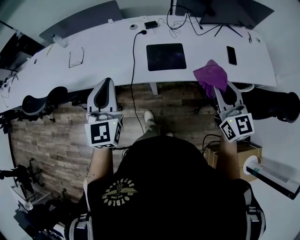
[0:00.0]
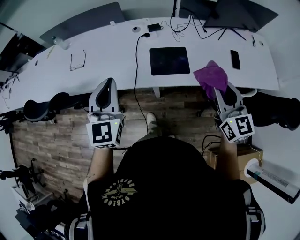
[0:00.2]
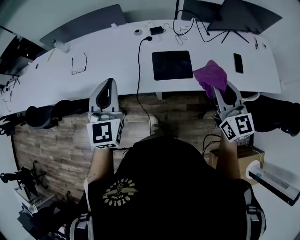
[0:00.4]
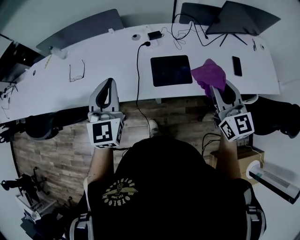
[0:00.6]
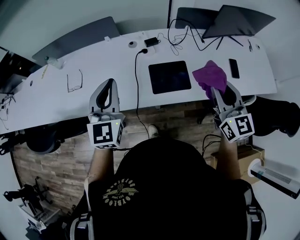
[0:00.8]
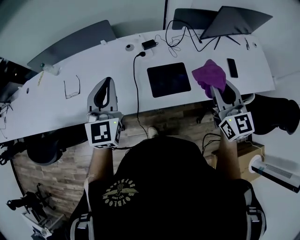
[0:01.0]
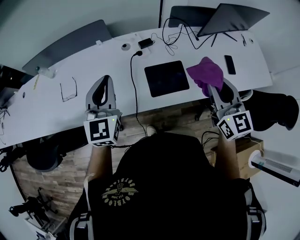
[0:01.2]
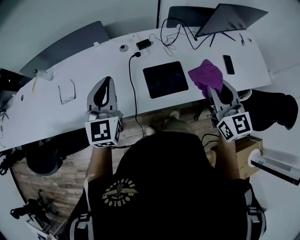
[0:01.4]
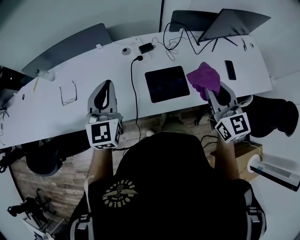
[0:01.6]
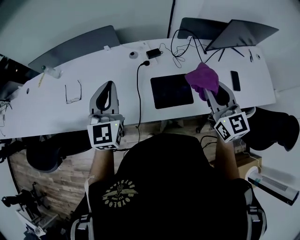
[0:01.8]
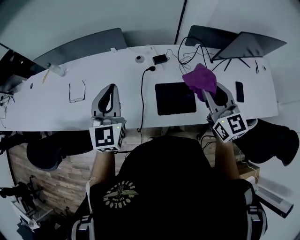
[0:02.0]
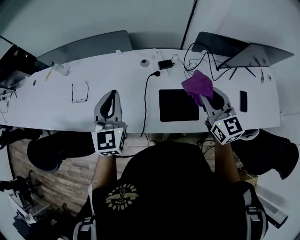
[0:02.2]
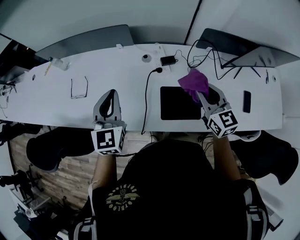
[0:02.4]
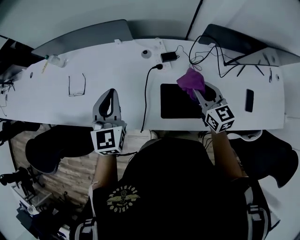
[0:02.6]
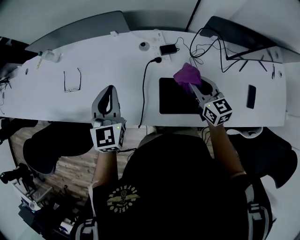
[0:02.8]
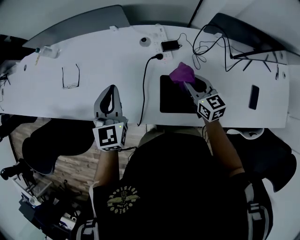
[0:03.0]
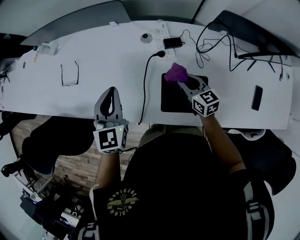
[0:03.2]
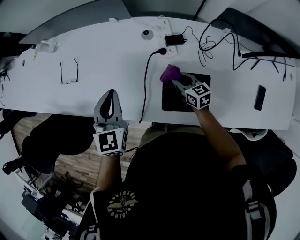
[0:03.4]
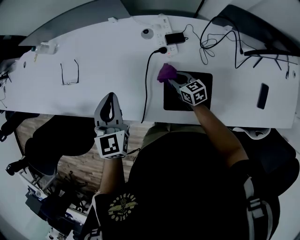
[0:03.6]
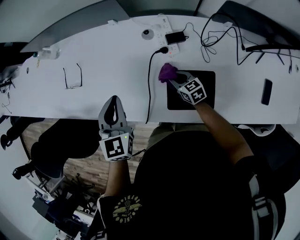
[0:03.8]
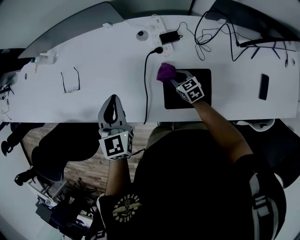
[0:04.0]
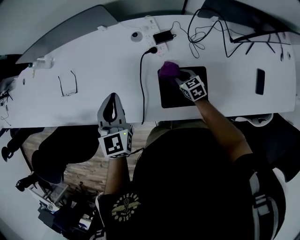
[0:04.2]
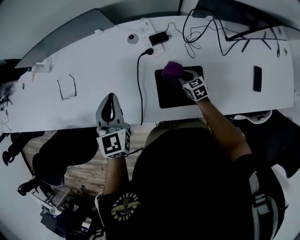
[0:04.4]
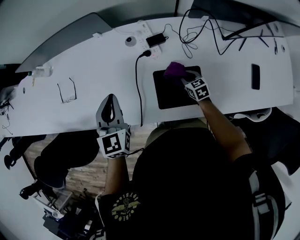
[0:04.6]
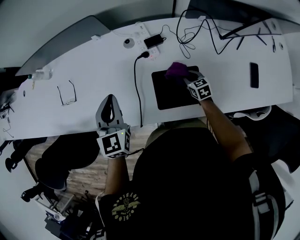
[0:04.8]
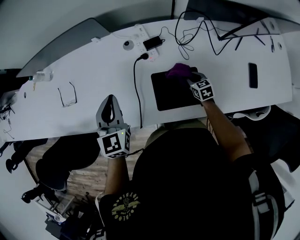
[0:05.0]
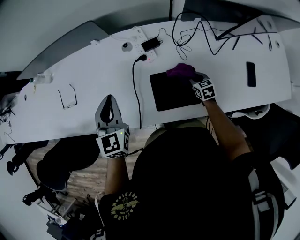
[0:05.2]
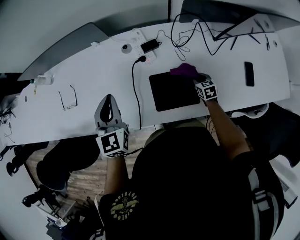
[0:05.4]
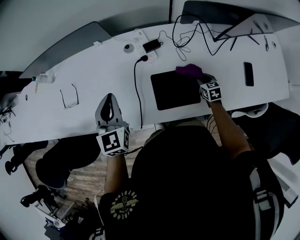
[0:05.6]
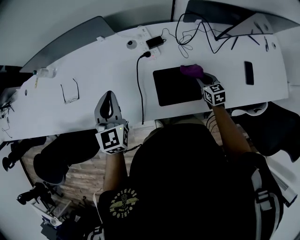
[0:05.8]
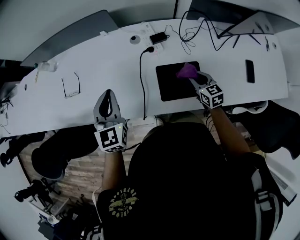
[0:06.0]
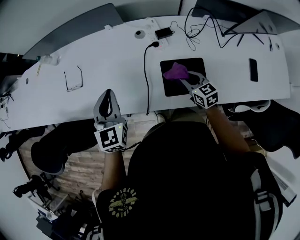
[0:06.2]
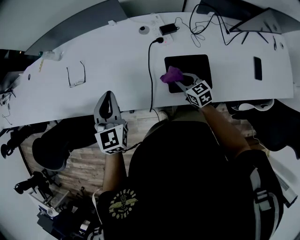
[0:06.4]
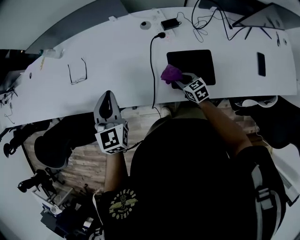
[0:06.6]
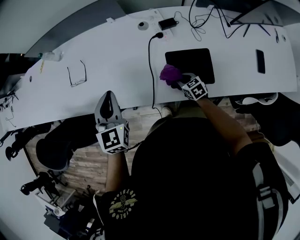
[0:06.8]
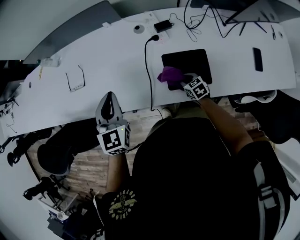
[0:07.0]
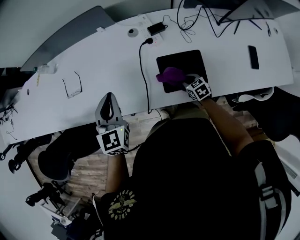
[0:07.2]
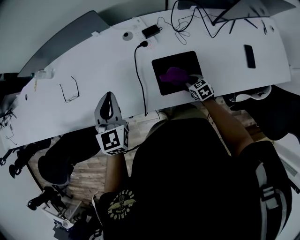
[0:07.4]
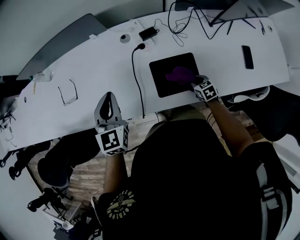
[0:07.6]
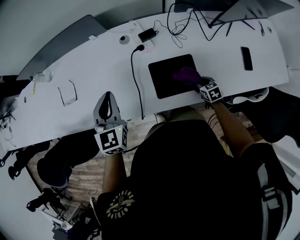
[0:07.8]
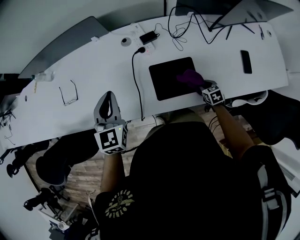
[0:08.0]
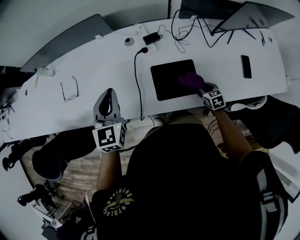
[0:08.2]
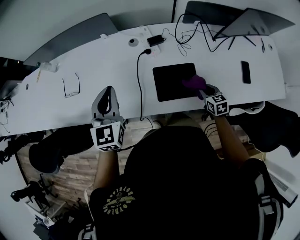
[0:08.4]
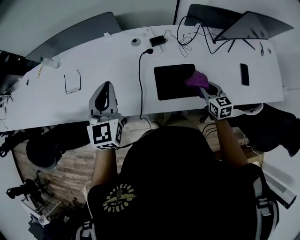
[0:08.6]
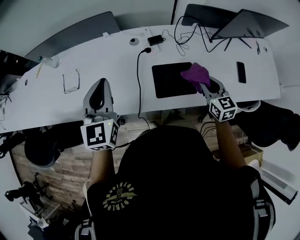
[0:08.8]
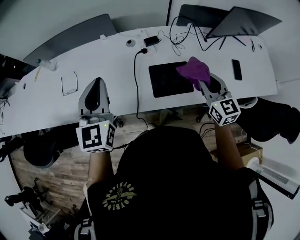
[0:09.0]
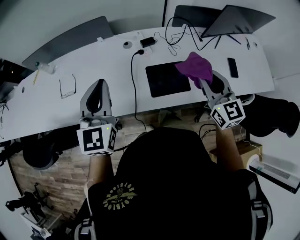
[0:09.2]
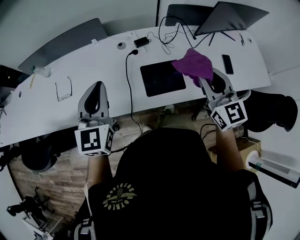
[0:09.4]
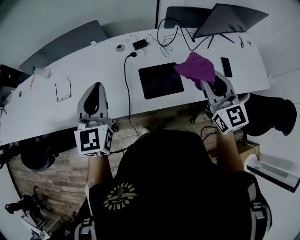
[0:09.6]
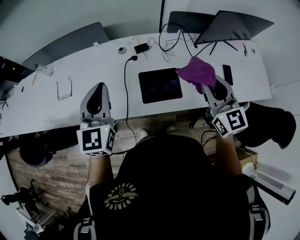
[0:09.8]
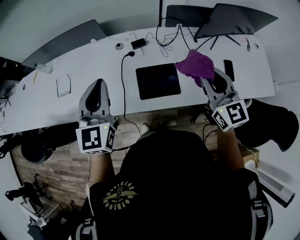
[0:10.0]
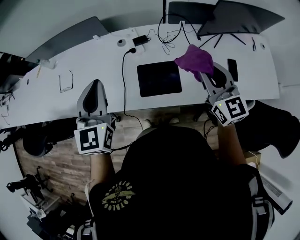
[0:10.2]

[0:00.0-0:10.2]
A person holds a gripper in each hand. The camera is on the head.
0:00.0 to 0:01.4: Both grippers travel together forward, some 20 cm.
0:01.4 to 0:03.0: The left gripper goes roughly 15 cm downward and forward, and changes its angle by approximately 20 degrees, while the right gripper travels downward and forward by roughly 35 cm, and rotates roughly 30 degrees.
0:03.0 to 0:04.4: The right gripper travels downward by approximately 20 cm, and turns by approximately 20 degrees.
0:04.4 to 0:05.8: The right gripper moves to the right, upward and backward, some 15 cm.
0:05.8 to 0:07.2: The right gripper heads to the left and downward, covering some 15 cm.
0:07.2 to 0:08.8: The left gripper goes approximately 10 cm upward. Meanwhile the right gripper is displaced upward by about 25 cm, and changes its angle by approximately 30 degrees.
0:08.8 to 0:10.2: The right gripper is displaced upward and to the right by about 20 cm; the left gripper goes roughly 10 cm to the right.

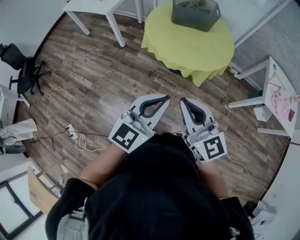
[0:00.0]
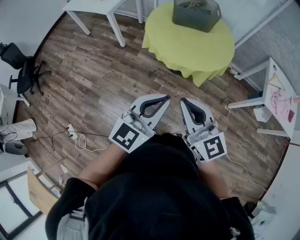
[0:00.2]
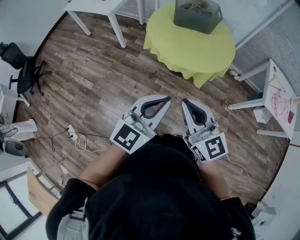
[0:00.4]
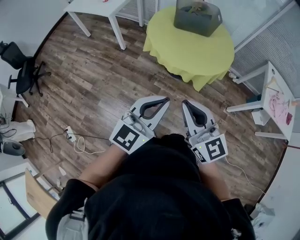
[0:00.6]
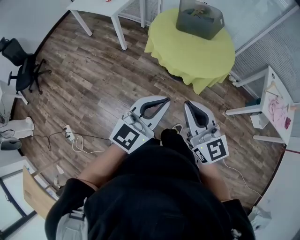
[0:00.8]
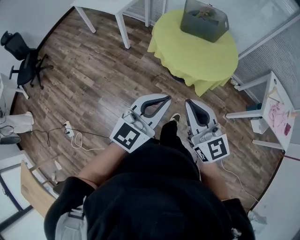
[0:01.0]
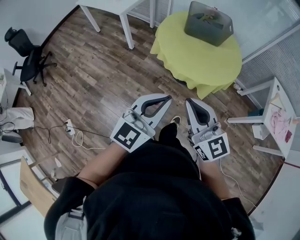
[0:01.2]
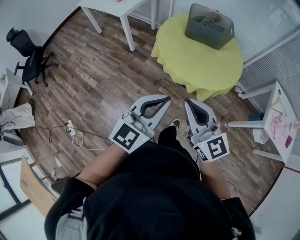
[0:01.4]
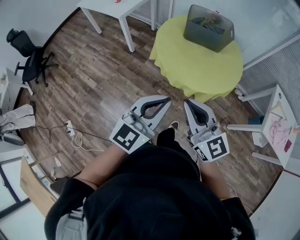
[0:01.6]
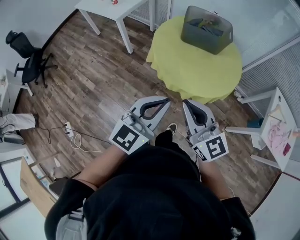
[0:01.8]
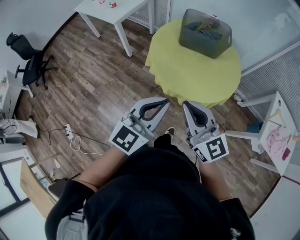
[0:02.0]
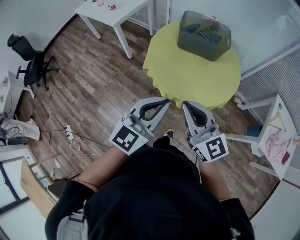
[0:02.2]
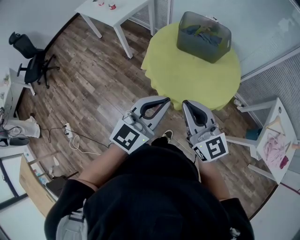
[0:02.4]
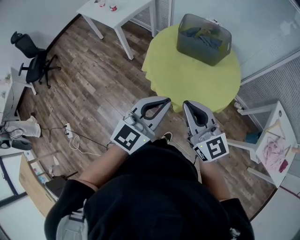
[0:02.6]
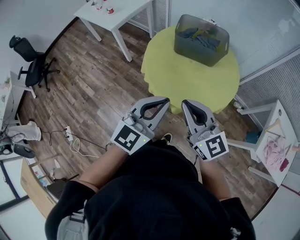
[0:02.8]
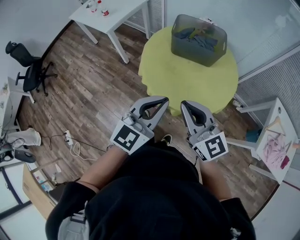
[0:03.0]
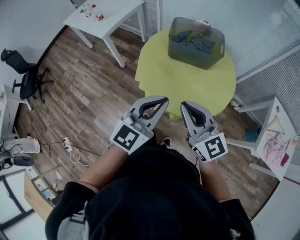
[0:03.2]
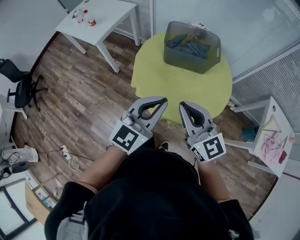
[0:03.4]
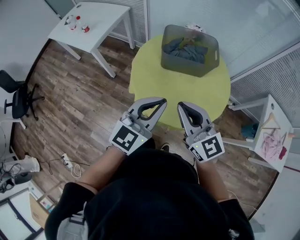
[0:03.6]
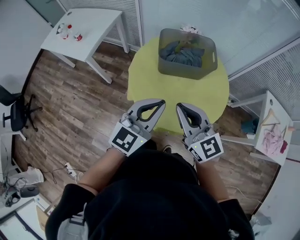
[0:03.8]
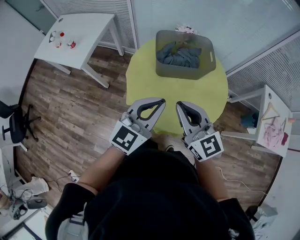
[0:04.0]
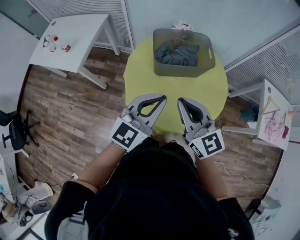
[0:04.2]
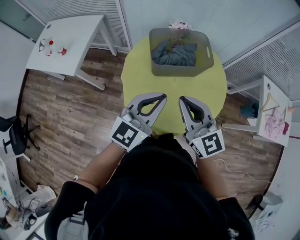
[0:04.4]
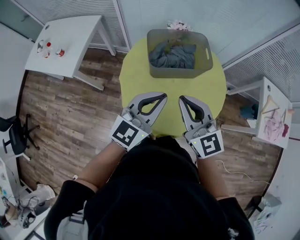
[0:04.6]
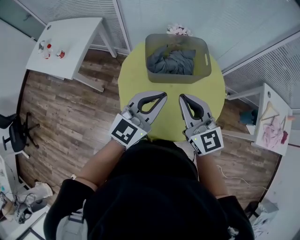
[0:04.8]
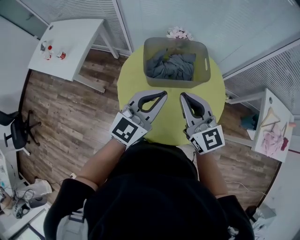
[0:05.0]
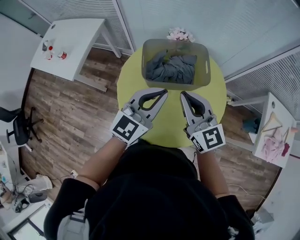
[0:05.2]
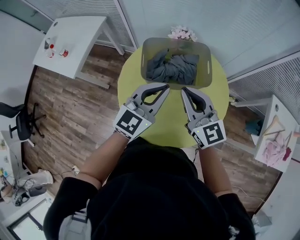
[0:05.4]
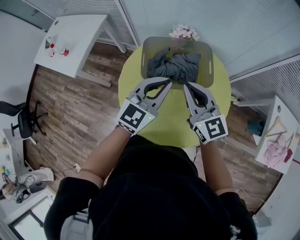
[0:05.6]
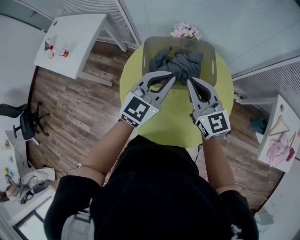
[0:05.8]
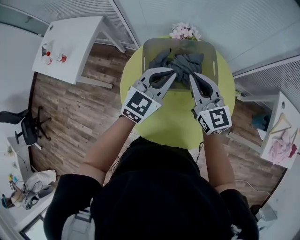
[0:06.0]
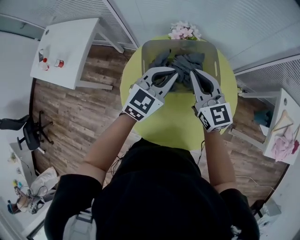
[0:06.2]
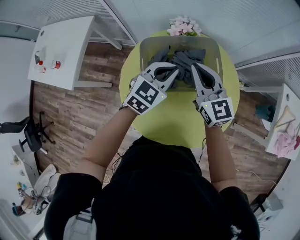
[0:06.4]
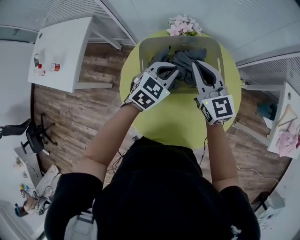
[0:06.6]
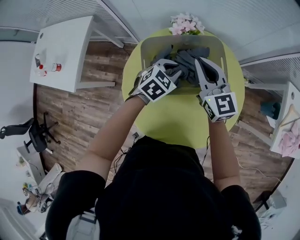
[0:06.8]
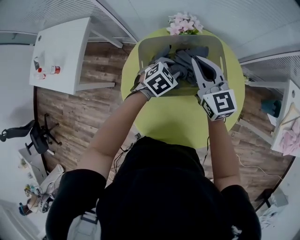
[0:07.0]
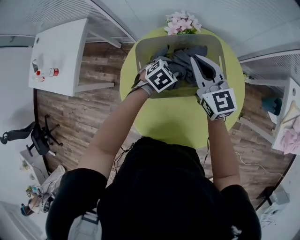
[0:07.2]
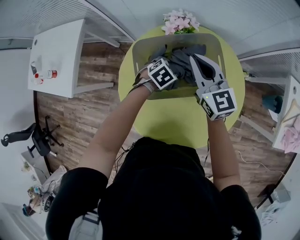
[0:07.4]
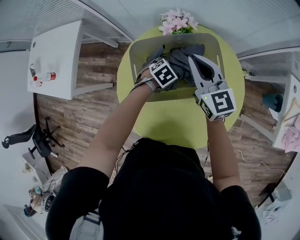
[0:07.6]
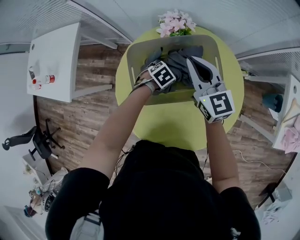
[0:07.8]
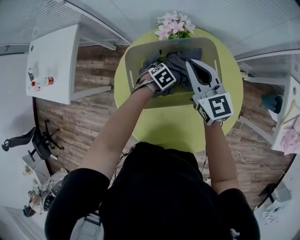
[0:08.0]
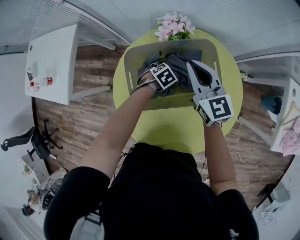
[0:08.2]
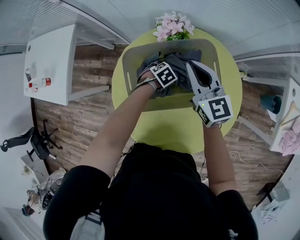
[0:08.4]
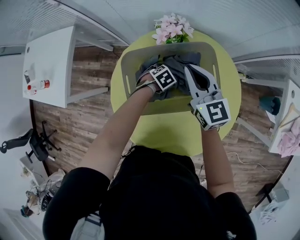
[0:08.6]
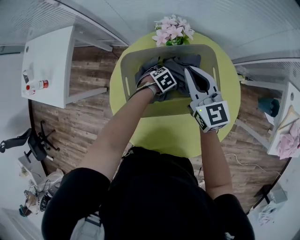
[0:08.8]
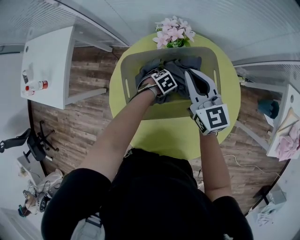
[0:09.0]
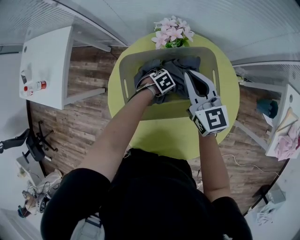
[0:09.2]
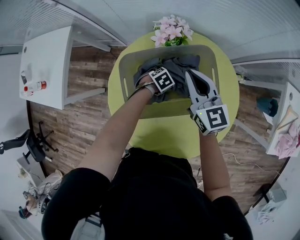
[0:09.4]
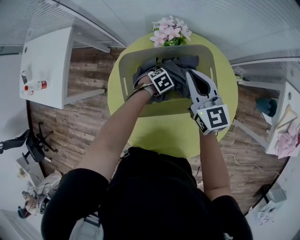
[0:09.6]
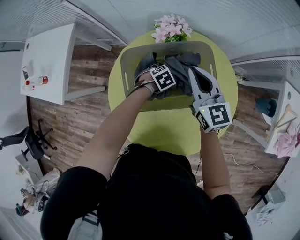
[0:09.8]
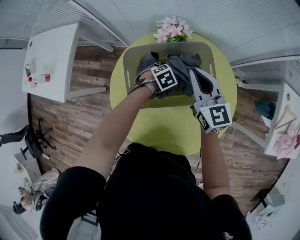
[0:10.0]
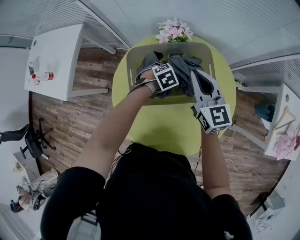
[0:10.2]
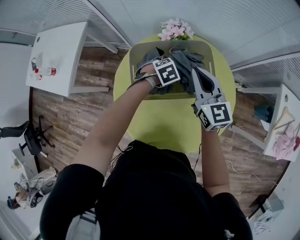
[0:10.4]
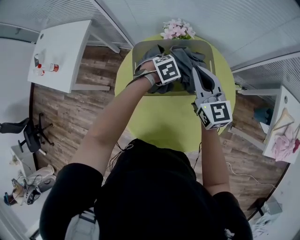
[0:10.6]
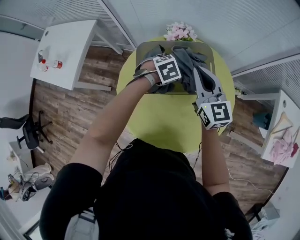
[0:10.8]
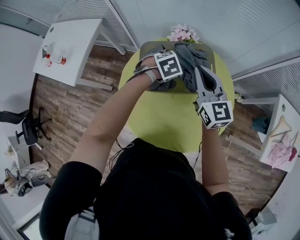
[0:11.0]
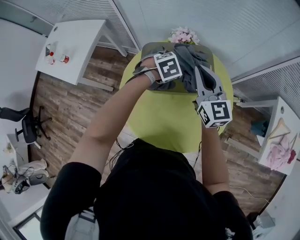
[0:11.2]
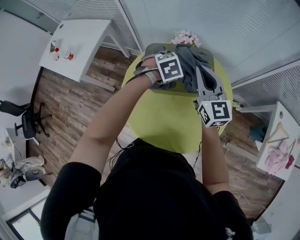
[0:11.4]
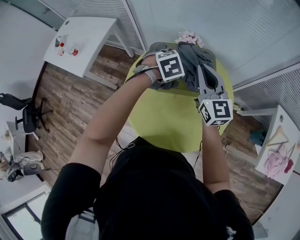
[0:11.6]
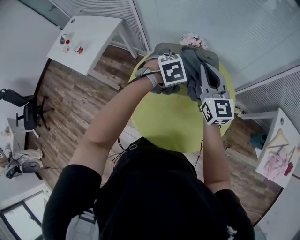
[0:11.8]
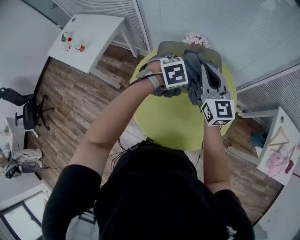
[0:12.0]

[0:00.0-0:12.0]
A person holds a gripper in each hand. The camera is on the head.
0:00.0 to 0:01.6: Both grippers move forward, about 10 cm.
0:01.6 to 0:03.0: Both grippers move forward and to the right, roughly 20 cm.
0:03.0 to 0:04.4: The grippers both shift forward by some 20 cm. The right gripper rotates approximately 30 degrees; the left gripper swivels some 20 degrees.
0:04.4 to 0:06.0: The two grippers go about 25 cm forward.
0:06.0 to 0:07.6: The left gripper is displaced downward by approximately 30 cm, points its fingers roughly 50 degrees further downward, and opens up; the right gripper is displaced forward and downward by roughly 15 cm.
0:07.6 to 0:09.0: The left gripper moves downward, about 10 cm.
0:09.0 to 0:10.4: The right gripper moves approximately 10 cm. The left gripper travels upward by some 15 cm.
0:10.4 to 0:12.0: Both grippers move upward and backward, roughly 20 cm.

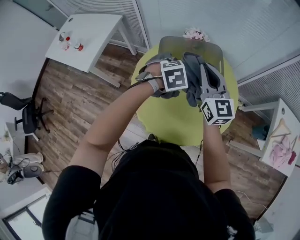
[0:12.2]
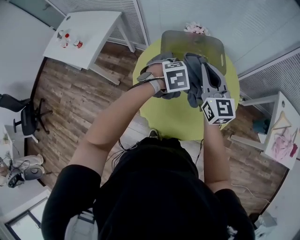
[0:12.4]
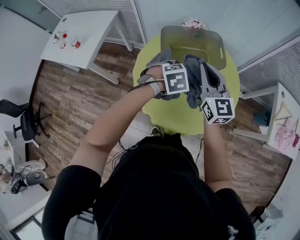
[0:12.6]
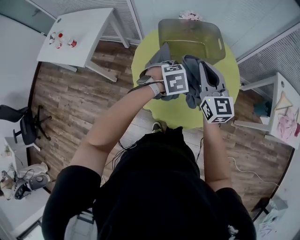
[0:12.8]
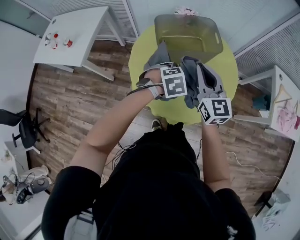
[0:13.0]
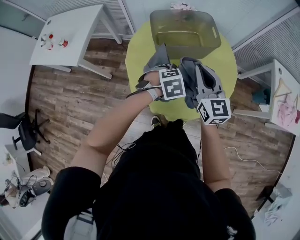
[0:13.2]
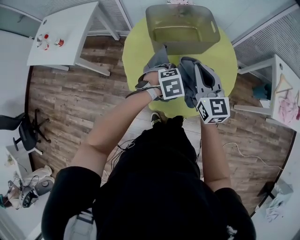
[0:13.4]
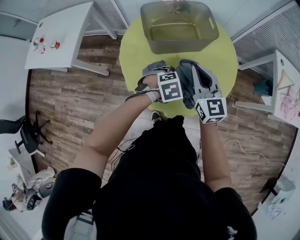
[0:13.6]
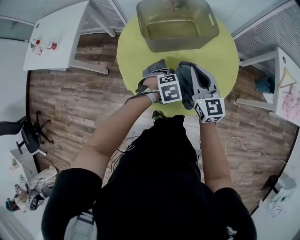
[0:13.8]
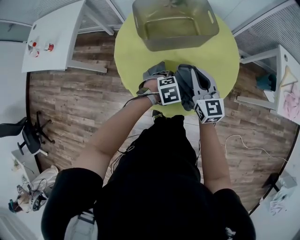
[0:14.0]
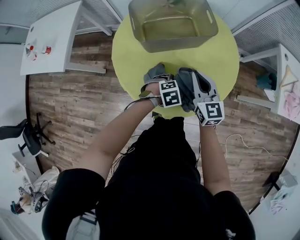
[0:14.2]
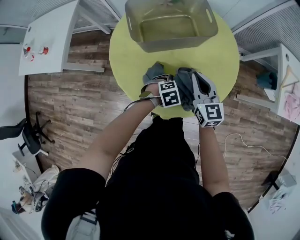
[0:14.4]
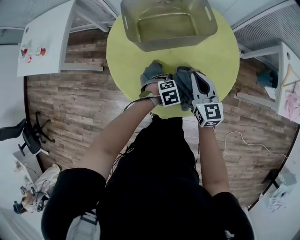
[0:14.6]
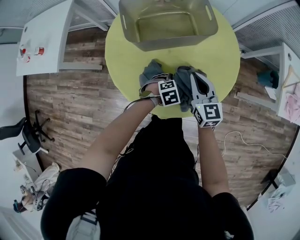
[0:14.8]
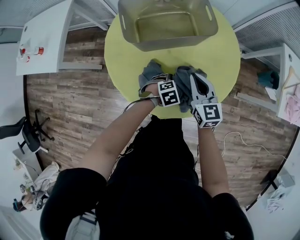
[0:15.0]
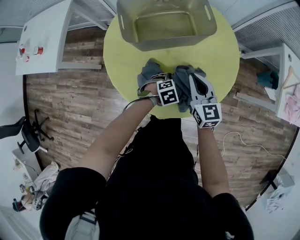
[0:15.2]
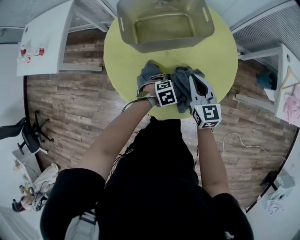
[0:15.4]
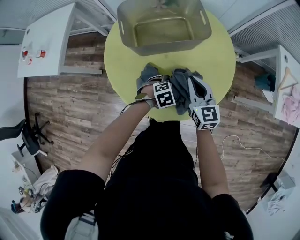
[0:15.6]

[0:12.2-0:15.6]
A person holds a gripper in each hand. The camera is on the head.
0:12.2 to 0:13.8: Both grippers move downward, backward and to the right, approximately 20 cm.
0:13.8 to 0:15.6: The two grippers go roughly 10 cm downward.
